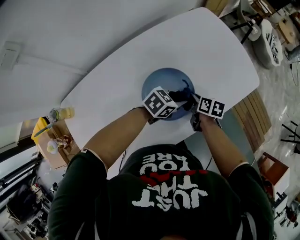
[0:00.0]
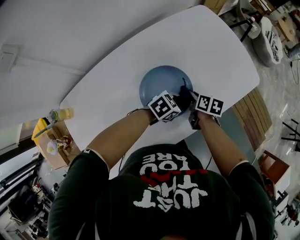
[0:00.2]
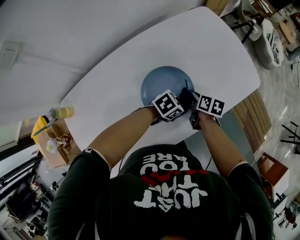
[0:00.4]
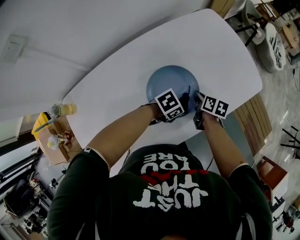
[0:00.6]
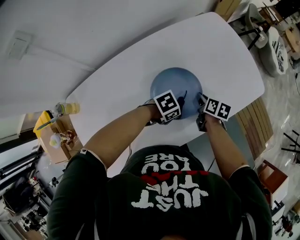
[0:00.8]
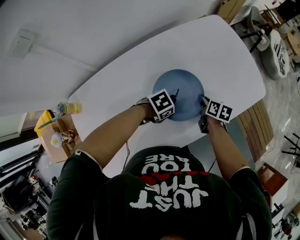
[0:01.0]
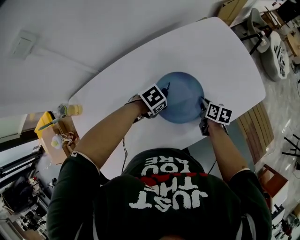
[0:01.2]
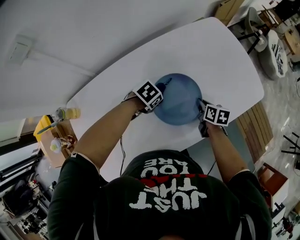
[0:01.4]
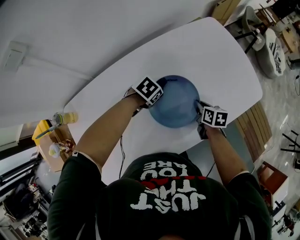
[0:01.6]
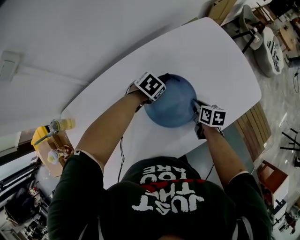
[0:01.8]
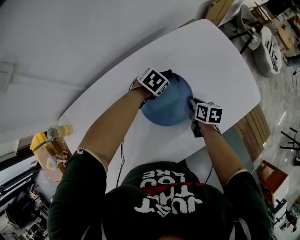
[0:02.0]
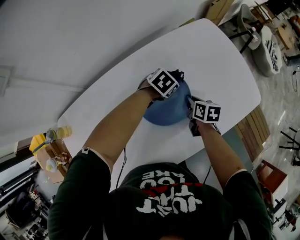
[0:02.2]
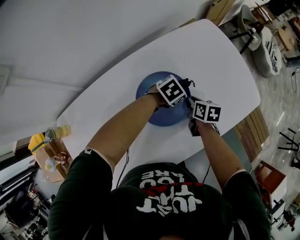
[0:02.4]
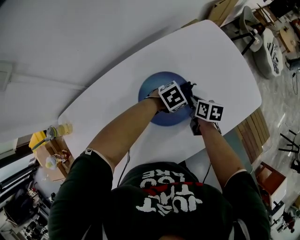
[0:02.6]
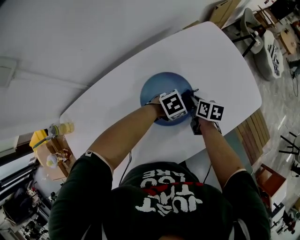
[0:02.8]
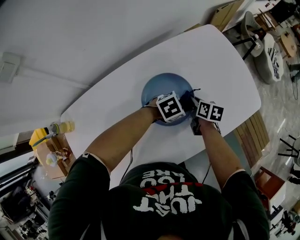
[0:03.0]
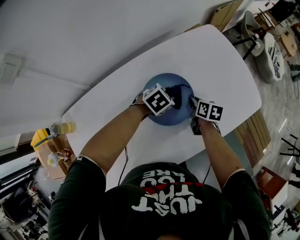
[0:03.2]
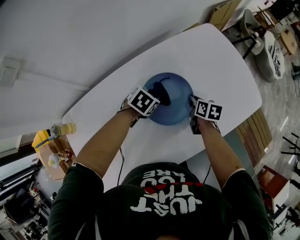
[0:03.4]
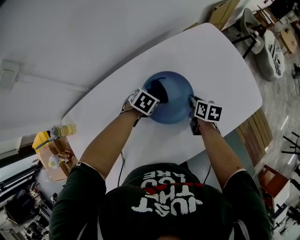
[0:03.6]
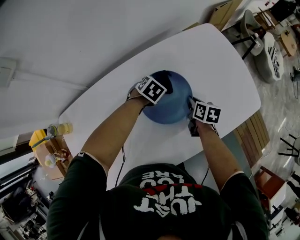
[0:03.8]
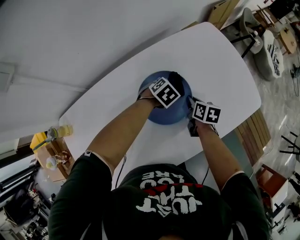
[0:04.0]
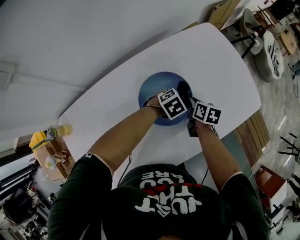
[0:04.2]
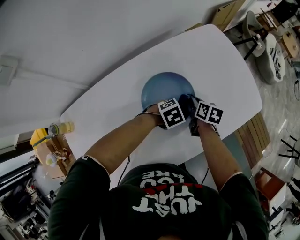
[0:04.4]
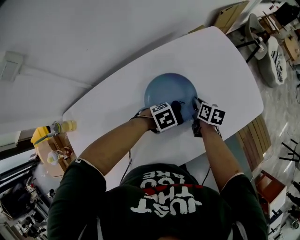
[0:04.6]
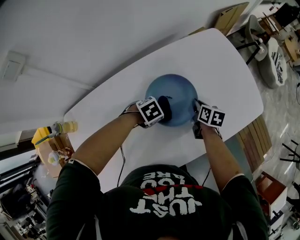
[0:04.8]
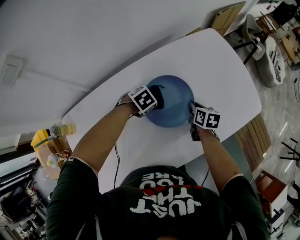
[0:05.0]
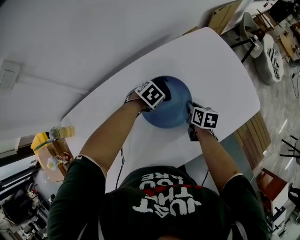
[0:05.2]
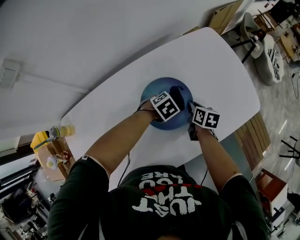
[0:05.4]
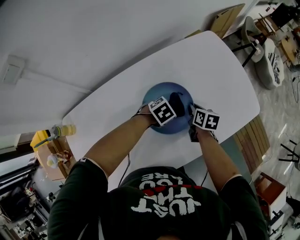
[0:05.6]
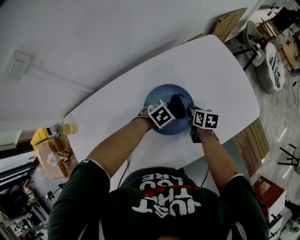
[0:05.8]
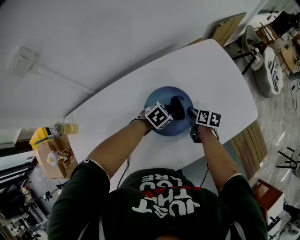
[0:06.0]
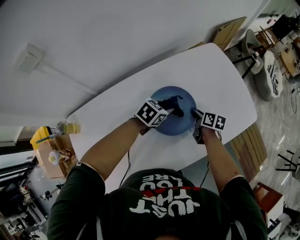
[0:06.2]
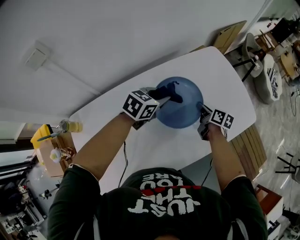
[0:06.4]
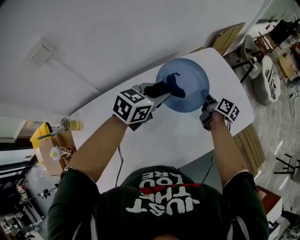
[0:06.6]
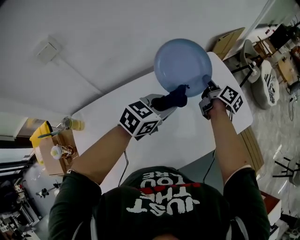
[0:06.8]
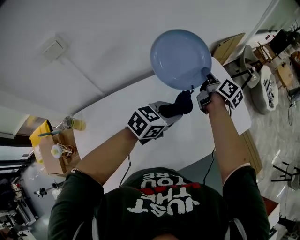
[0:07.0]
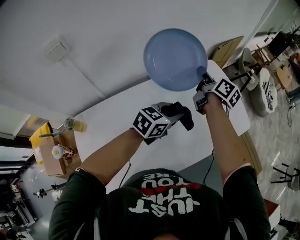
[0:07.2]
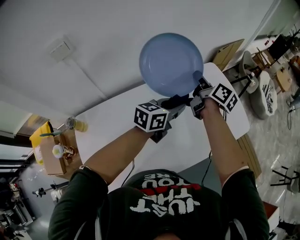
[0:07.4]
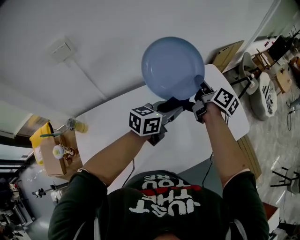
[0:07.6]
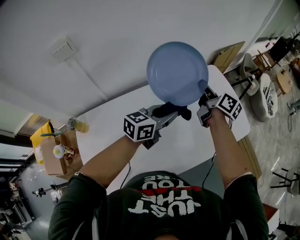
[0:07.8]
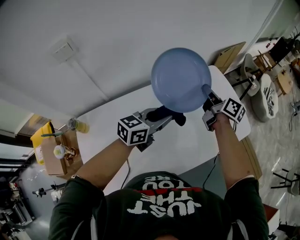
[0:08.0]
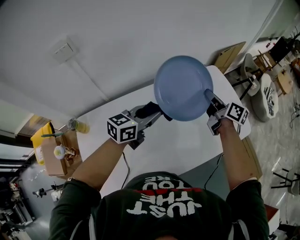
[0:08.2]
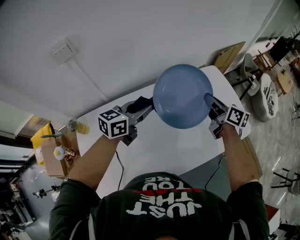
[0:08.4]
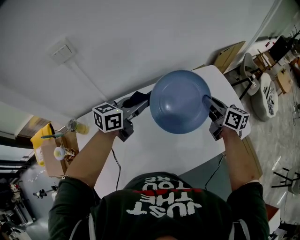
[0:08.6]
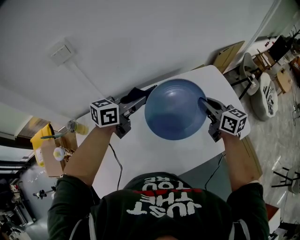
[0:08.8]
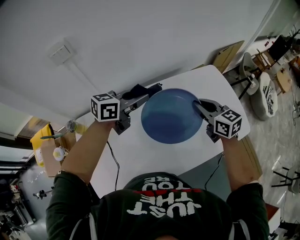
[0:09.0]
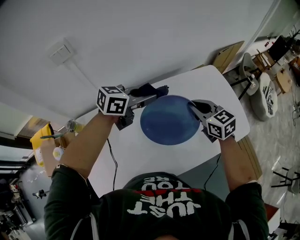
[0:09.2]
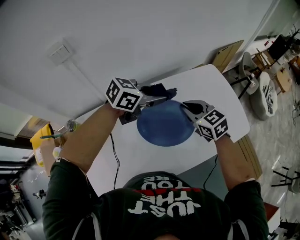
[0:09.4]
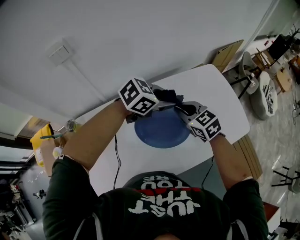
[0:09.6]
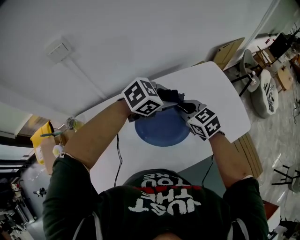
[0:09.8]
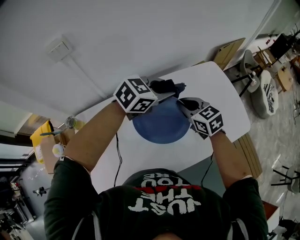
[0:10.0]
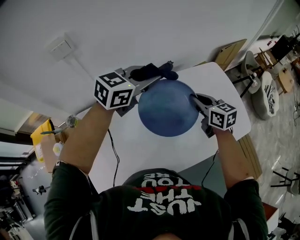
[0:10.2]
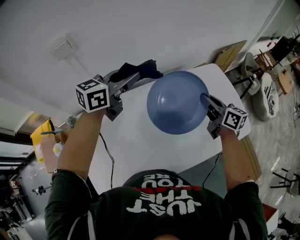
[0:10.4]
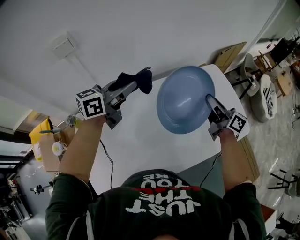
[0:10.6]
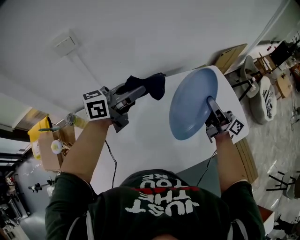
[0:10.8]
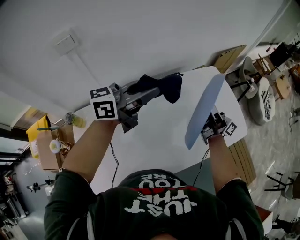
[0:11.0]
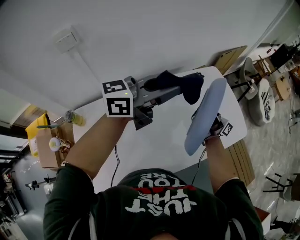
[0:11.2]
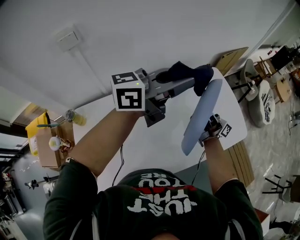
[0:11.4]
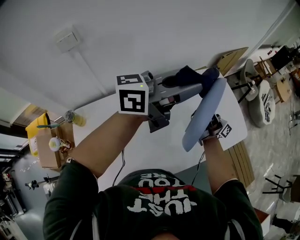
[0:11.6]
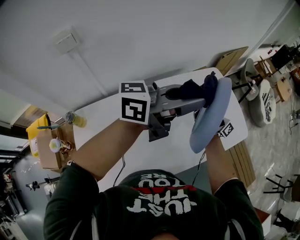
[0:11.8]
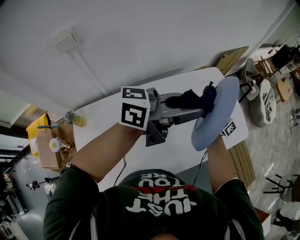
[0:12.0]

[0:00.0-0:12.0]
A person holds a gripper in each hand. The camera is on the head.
0.0 to 1.6 s: The left gripper shifts by approximately 20 cm, and points its fingers about 30 degrees further downward.
1.6 to 3.0 s: The right gripper moves some 10 cm; the left gripper moves some 15 cm, and turns by roughly 30 degrees.
3.0 to 4.4 s: The left gripper goes to the left and returns, roughly 15 cm each way.
4.4 to 6.0 s: The left gripper changes its angle by about 20 degrees.
6.0 to 7.6 s: The two grippers go some 30 cm upward. The right gripper points its fingers roughly 40 degrees further upward, while the left gripper angles its fingers upward, by approximately 50 degrees.
7.6 to 9.0 s: The left gripper goes some 15 cm to the left. Meanwhile the right gripper is displaced backward by roughly 10 cm, and rolls counterclockwise, seen from behind, by some 40 degrees.
9.0 to 10.4 s: The right gripper turns by approximately 20 degrees, while the left gripper shifts approximately 5 cm upward.
10.4 to 12.0 s: The left gripper is displaced to the right and backward by some 20 cm, and swivels roughly 40 degrees. The right gripper moves upward, approximately 5 cm, and tilts its fingers approximately 50 degrees upward.

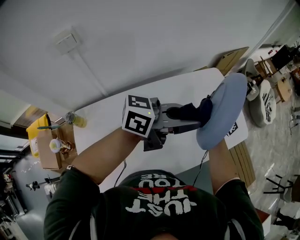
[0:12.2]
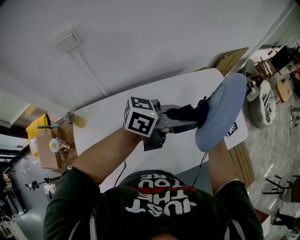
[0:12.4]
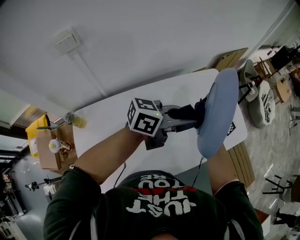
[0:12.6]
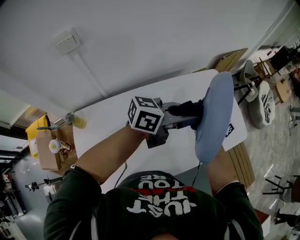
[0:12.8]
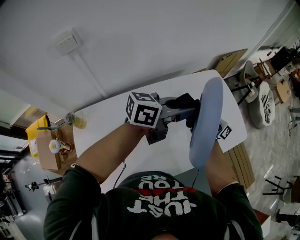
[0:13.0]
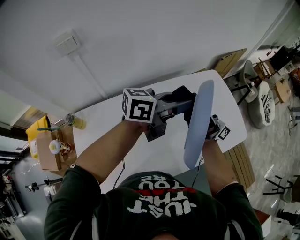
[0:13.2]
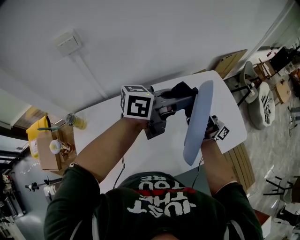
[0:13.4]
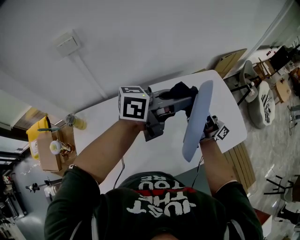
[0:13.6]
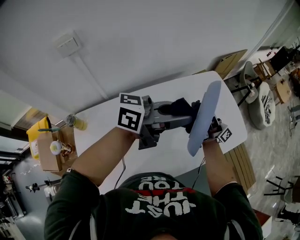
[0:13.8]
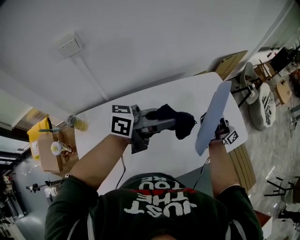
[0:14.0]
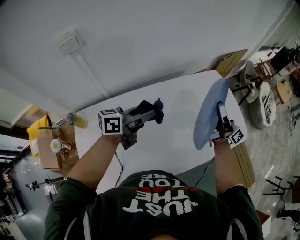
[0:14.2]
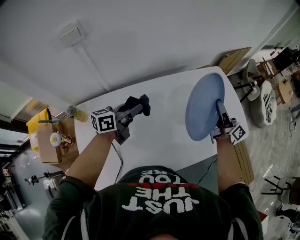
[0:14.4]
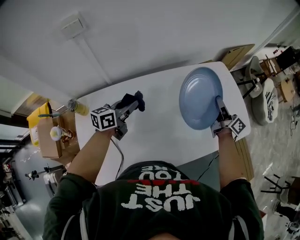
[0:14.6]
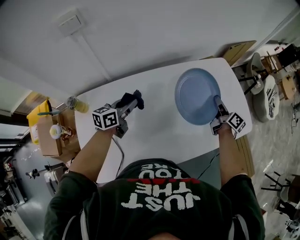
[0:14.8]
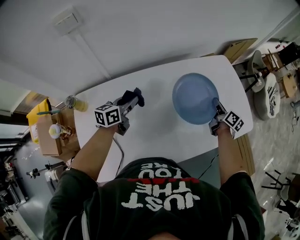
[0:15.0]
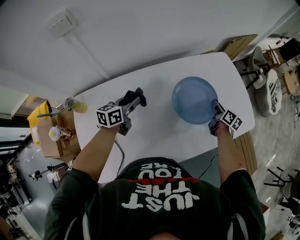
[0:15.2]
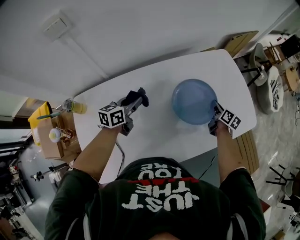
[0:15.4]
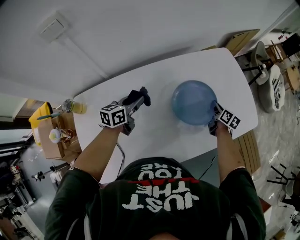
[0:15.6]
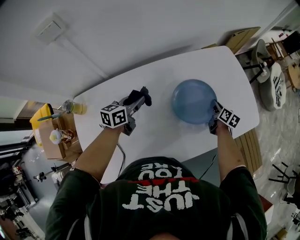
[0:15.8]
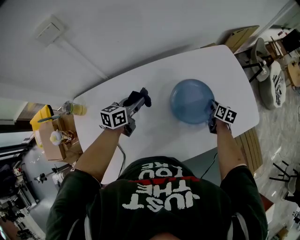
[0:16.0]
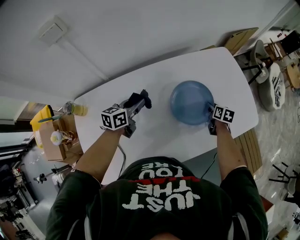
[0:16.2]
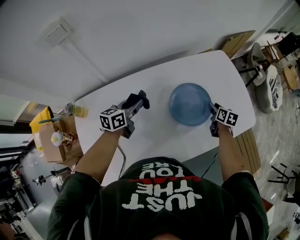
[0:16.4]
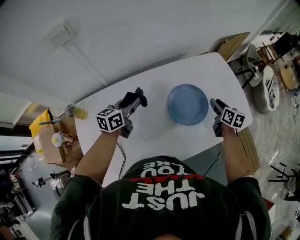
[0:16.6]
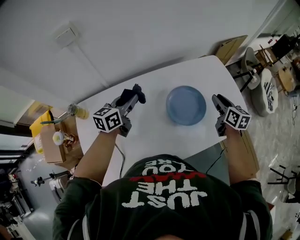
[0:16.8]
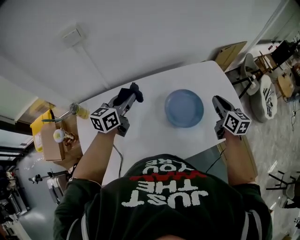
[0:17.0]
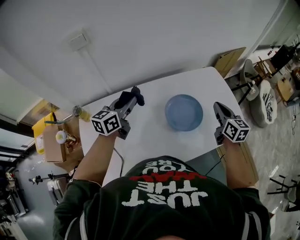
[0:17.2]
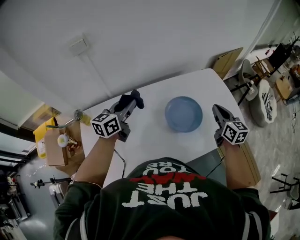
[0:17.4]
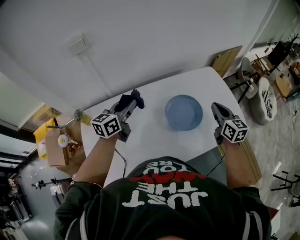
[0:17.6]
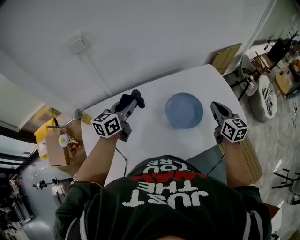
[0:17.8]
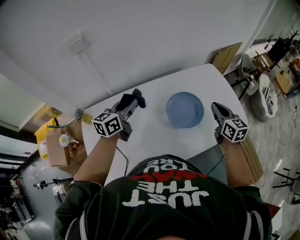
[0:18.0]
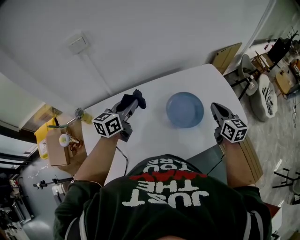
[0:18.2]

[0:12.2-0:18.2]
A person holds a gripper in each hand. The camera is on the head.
13.8 to 15.2 s: The right gripper travels downward and to the right by about 25 cm, and points its fingers roughly 70 degrees further downward; the left gripper travels downward and to the left by roughly 35 cm, and angles its fingers downward, by approximately 30 degrees.
15.2 to 16.6 s: The right gripper travels upward by approximately 5 cm, and opens up. Meanwhile the left gripper changes place by some 5 cm.
16.6 to 18.2 s: The left gripper moves upward, roughly 10 cm, while the right gripper shifts some 15 cm upward and backward, turns by some 30 degrees, and closes its fingers.

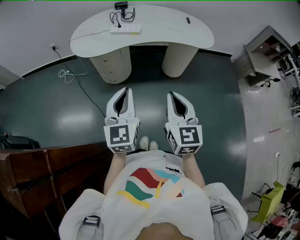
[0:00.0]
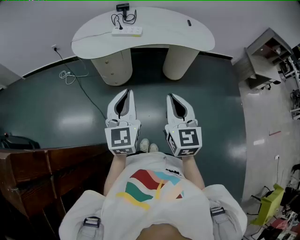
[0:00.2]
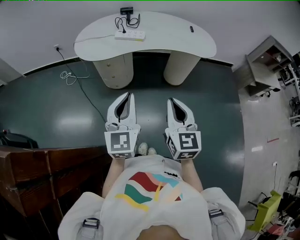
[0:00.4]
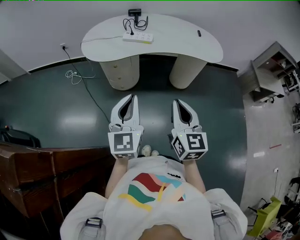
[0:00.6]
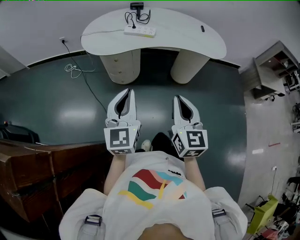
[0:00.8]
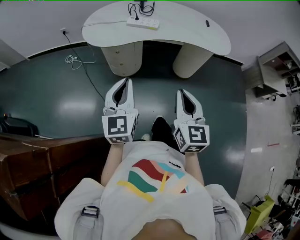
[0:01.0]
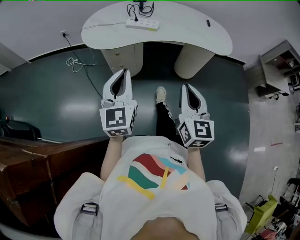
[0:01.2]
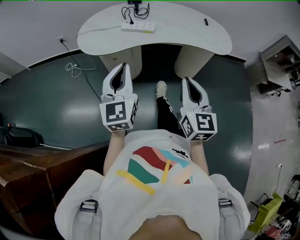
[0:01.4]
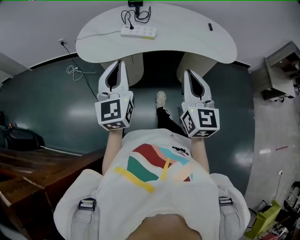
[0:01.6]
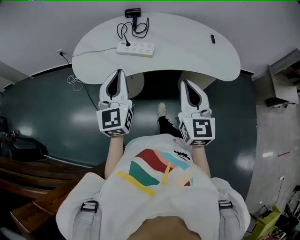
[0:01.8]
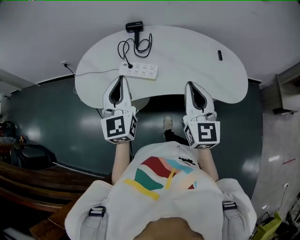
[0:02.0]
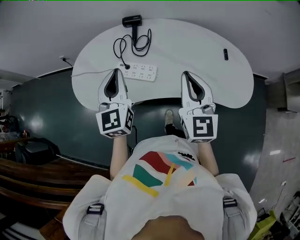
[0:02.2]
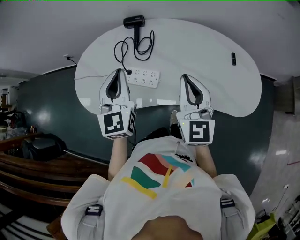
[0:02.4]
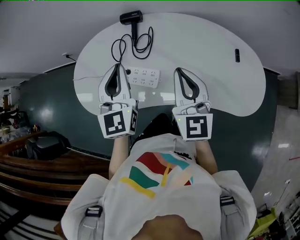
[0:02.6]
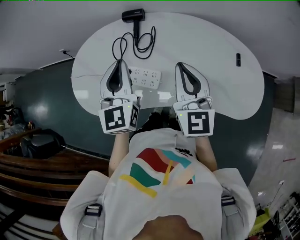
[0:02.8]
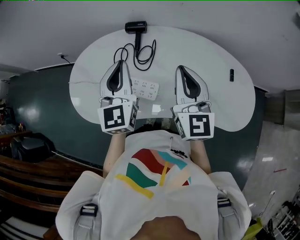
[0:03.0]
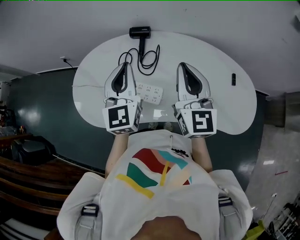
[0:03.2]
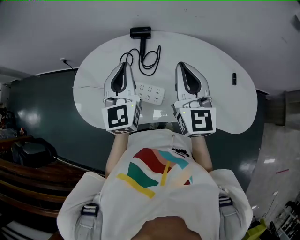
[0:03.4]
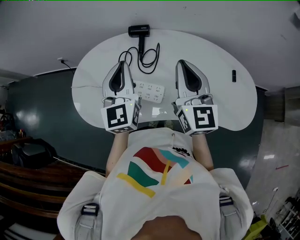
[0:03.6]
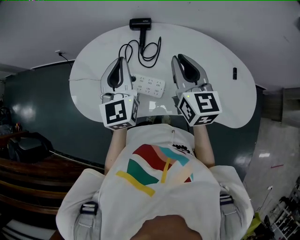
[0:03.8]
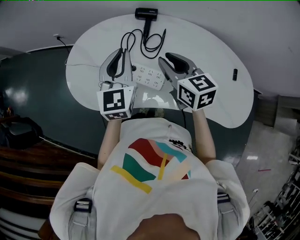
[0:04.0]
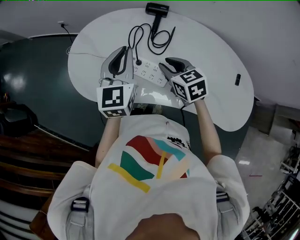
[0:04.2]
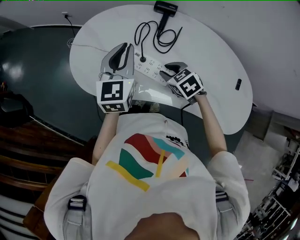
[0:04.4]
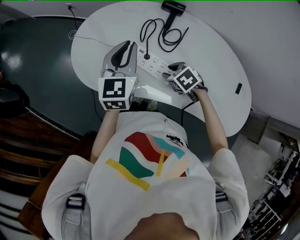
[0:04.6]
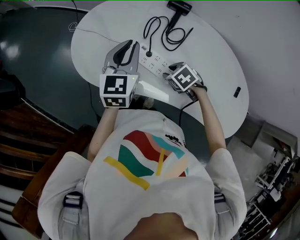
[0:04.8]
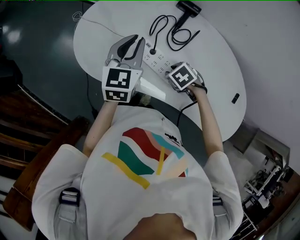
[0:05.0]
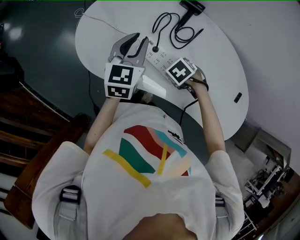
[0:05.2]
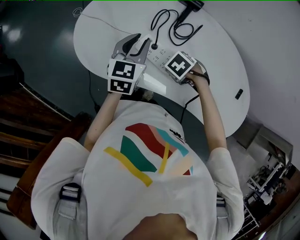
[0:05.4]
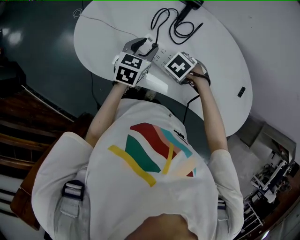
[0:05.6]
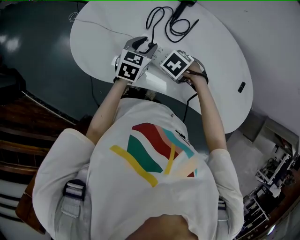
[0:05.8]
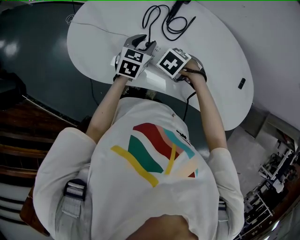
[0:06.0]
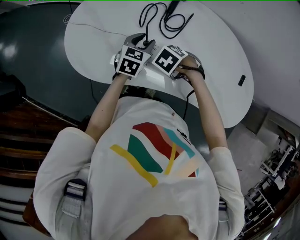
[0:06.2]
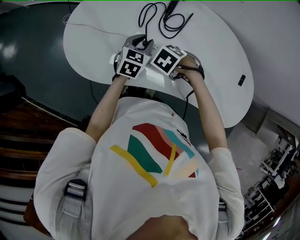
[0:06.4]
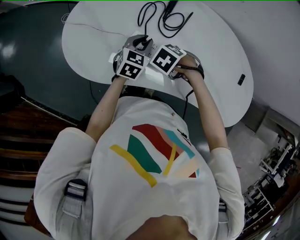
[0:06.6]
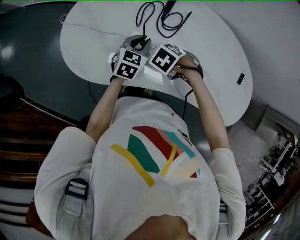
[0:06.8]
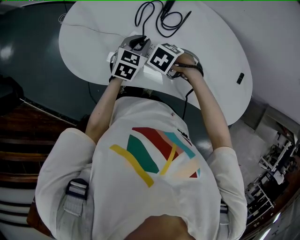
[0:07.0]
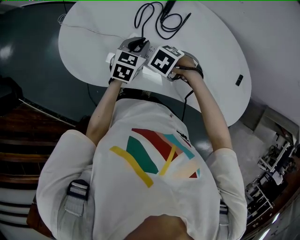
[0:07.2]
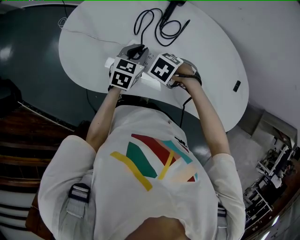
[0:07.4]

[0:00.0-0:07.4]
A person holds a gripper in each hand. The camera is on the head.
0.0 to 1.4 s: The grippers both shift forward by some 10 cm.
1.4 to 3.0 s: The two grippers travel together, forward, roughly 50 cm.
3.0 to 4.4 s: The left gripper moves some 10 cm. Meanwhile the right gripper travels downward by roughly 25 cm, points its fingers approximately 60 degrees further downward, and opens.
4.4 to 6.0 s: The right gripper goes roughly 5 cm downward, and angles its fingers downward, by about 30 degrees. The left gripper heads downward, covering some 20 cm, swivels about 30 degrees, and opens up.
6.0 to 7.4 s: The left gripper closes up.
